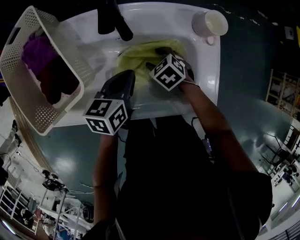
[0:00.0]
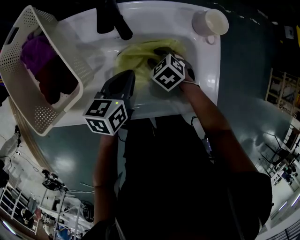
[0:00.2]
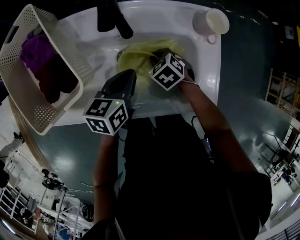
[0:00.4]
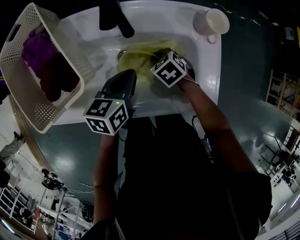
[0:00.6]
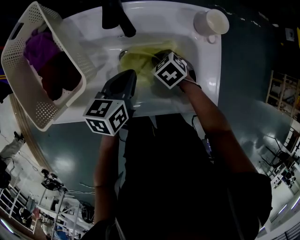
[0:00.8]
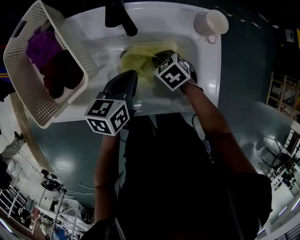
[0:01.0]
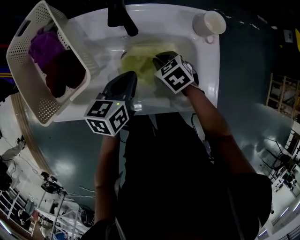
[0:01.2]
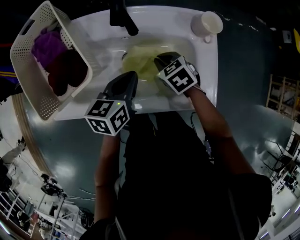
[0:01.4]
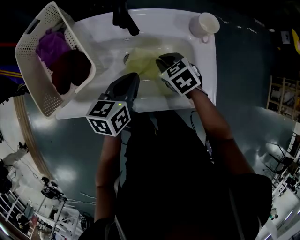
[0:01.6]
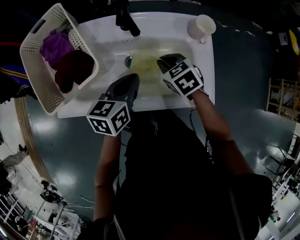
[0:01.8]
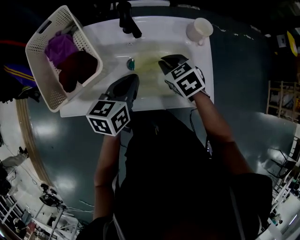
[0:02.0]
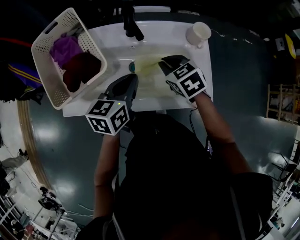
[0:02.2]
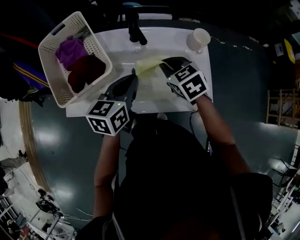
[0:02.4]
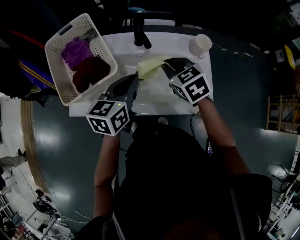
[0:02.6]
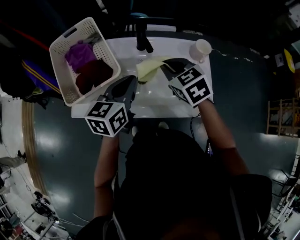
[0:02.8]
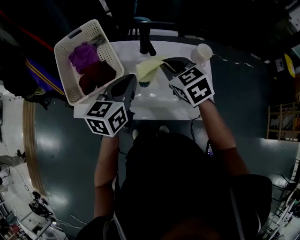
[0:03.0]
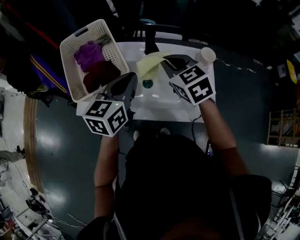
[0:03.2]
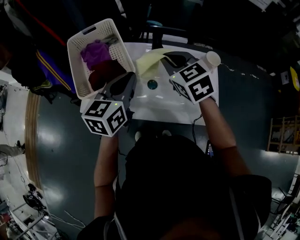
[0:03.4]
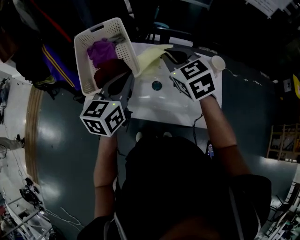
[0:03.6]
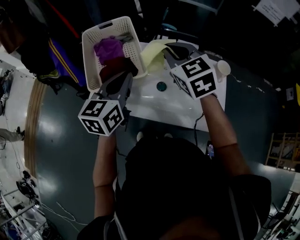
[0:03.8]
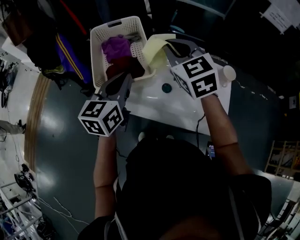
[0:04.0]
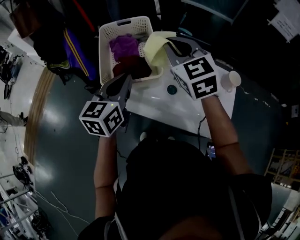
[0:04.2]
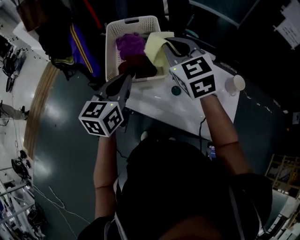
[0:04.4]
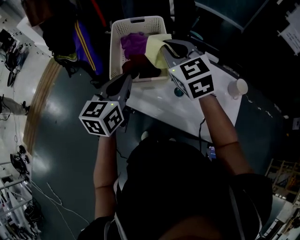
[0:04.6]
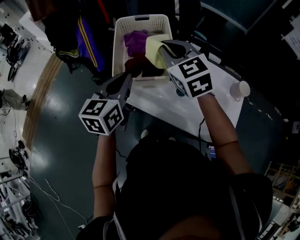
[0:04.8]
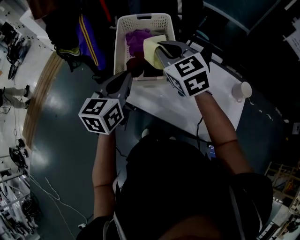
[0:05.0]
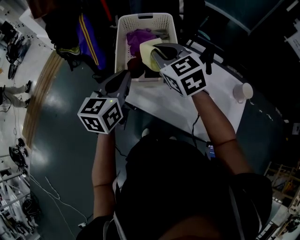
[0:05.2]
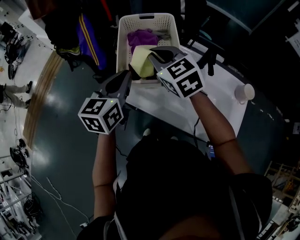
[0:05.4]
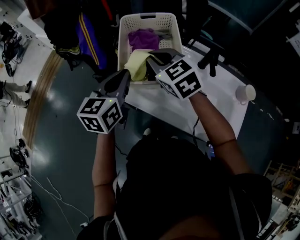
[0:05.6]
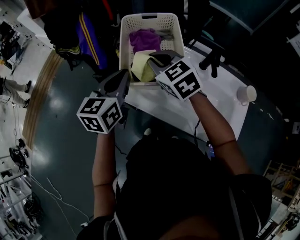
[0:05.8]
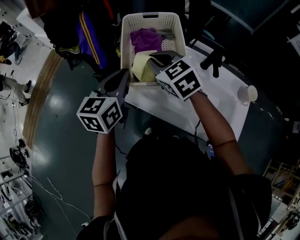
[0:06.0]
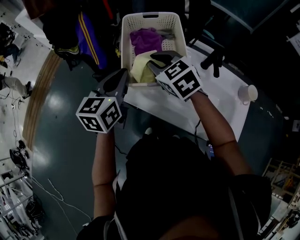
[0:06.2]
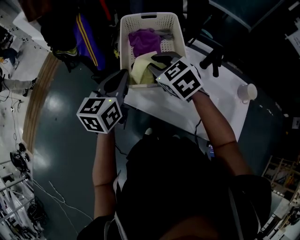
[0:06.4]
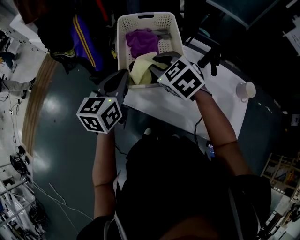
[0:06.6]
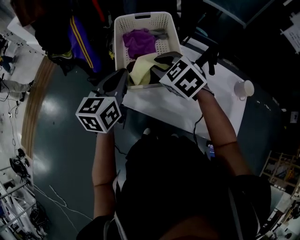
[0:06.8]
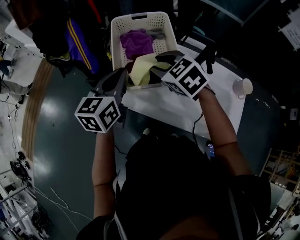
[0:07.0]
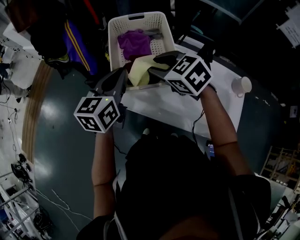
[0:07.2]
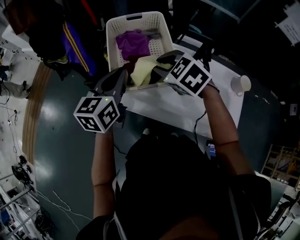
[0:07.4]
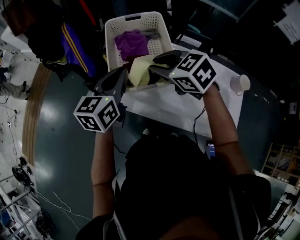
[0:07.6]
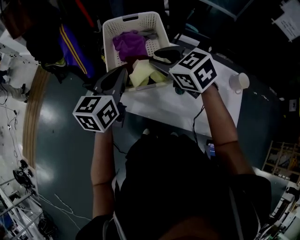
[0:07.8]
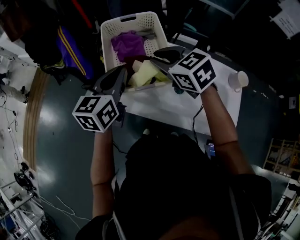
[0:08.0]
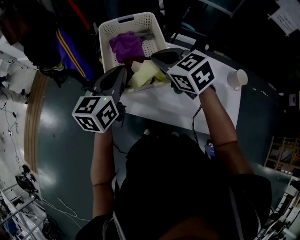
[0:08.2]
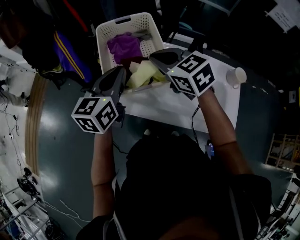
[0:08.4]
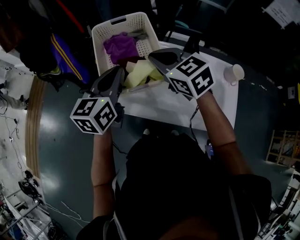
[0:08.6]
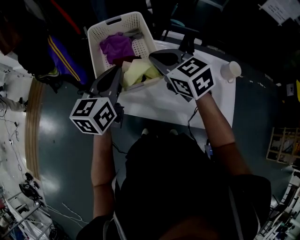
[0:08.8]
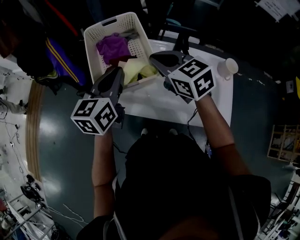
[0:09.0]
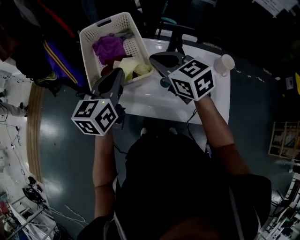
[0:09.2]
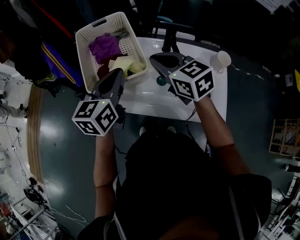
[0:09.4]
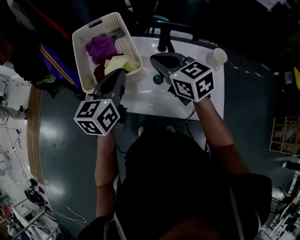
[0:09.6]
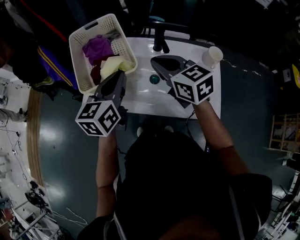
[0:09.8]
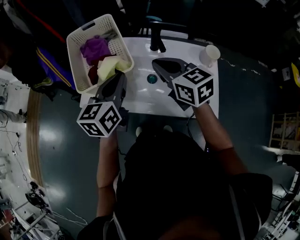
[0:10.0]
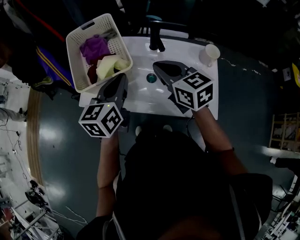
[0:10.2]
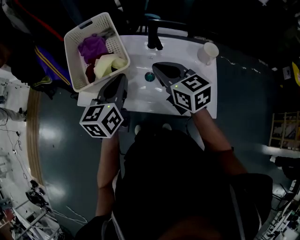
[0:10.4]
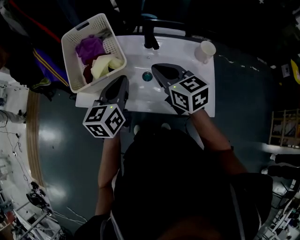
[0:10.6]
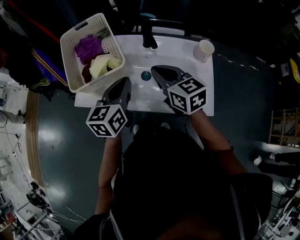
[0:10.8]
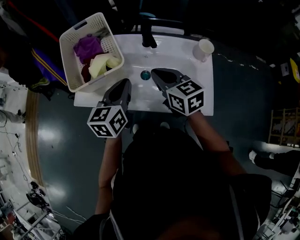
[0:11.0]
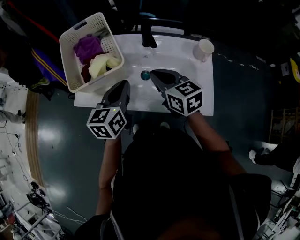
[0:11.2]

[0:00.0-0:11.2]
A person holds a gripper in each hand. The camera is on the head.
0:00.0 to 0:01.6: The left gripper changes place by about 5 cm, while the right gripper travels upward by approximately 10 cm, and closes up.
0:01.6 to 0:03.2: The left gripper is displaced upward and to the left by about 20 cm, and swivels some 20 degrees. The right gripper shifts about 25 cm upward, and changes its angle by roughly 20 degrees.
0:03.2 to 0:04.8: The two grippers go roughly 20 cm to the left. The right gripper changes its angle by about 20 degrees, while the left gripper swivels about 20 degrees.
0:04.8 to 0:06.4: The left gripper moves forward, approximately 5 cm. The right gripper travels downward and to the left by some 10 cm, and swivels roughly 20 degrees.
0:06.4 to 0:08.0: The left gripper changes place by some 5 cm. Meanwhile the right gripper shifts about 5 cm to the right.
0:08.0 to 0:09.6: The grippers both shift to the right and backward by about 15 cm. The right gripper swivels about 20 degrees.
0:09.6 to 0:11.2: The right gripper goes roughly 10 cm downward, backward and to the right; the left gripper heads downward and to the right, covering some 10 cm.

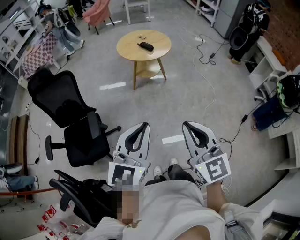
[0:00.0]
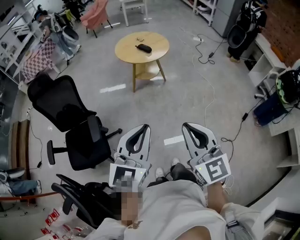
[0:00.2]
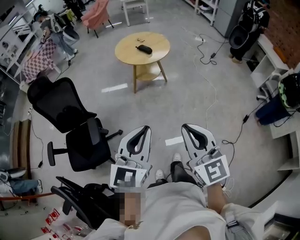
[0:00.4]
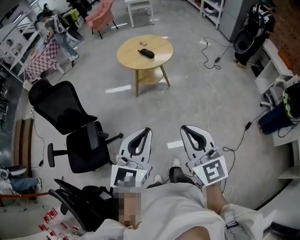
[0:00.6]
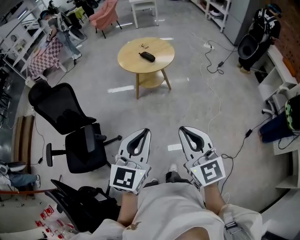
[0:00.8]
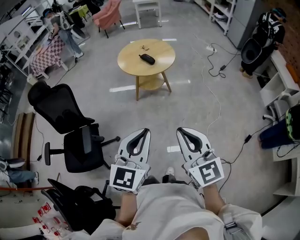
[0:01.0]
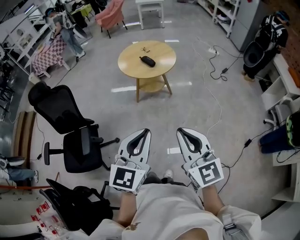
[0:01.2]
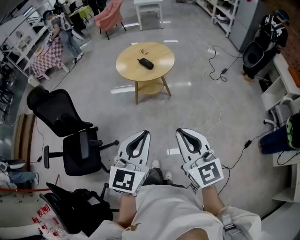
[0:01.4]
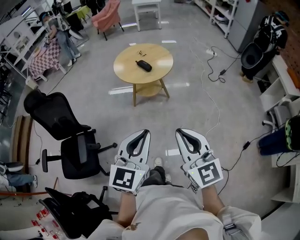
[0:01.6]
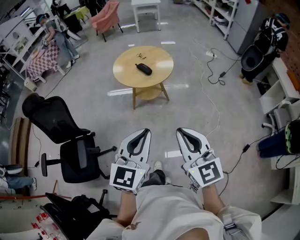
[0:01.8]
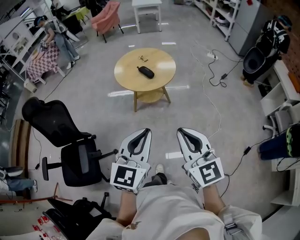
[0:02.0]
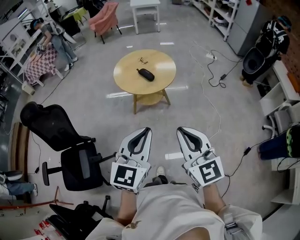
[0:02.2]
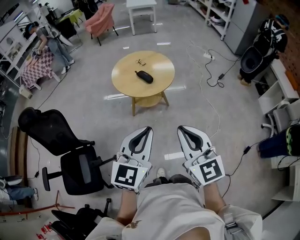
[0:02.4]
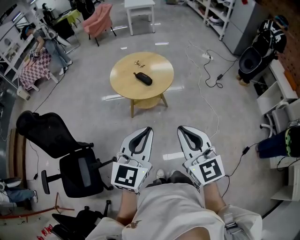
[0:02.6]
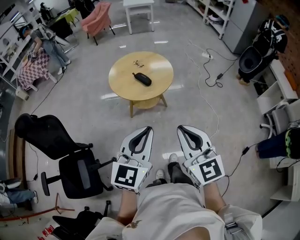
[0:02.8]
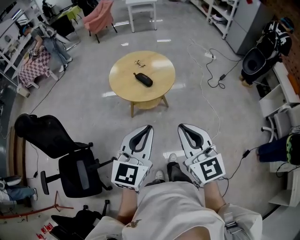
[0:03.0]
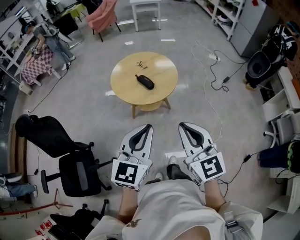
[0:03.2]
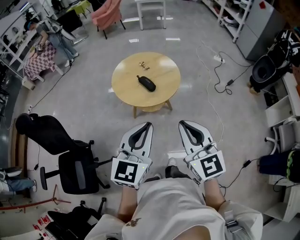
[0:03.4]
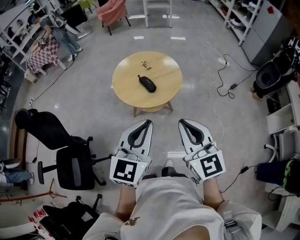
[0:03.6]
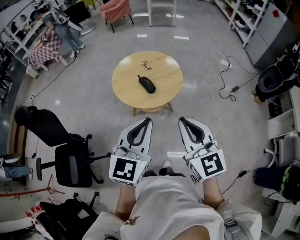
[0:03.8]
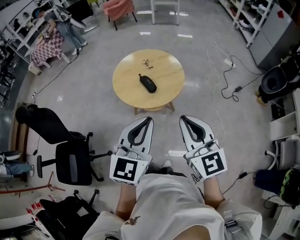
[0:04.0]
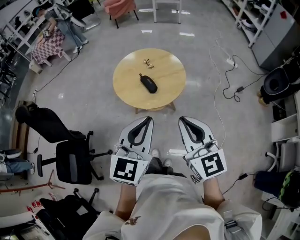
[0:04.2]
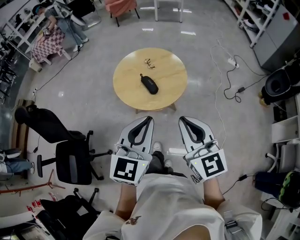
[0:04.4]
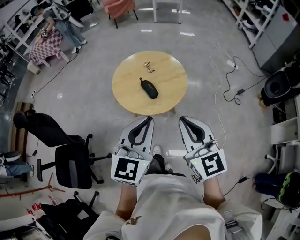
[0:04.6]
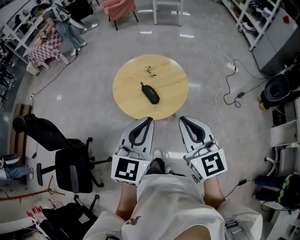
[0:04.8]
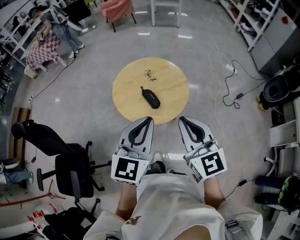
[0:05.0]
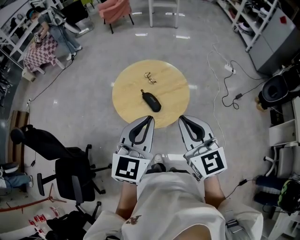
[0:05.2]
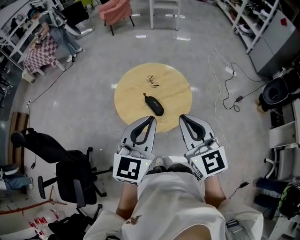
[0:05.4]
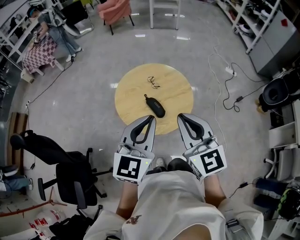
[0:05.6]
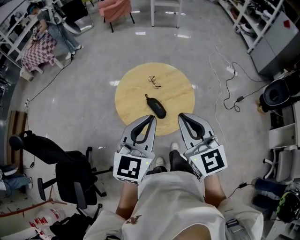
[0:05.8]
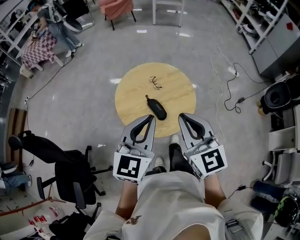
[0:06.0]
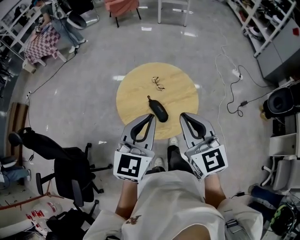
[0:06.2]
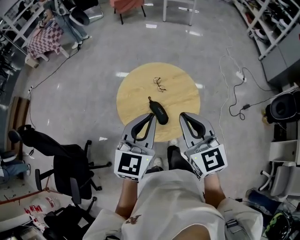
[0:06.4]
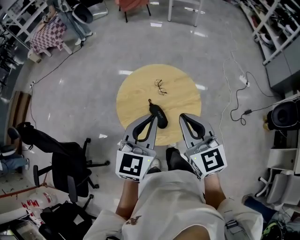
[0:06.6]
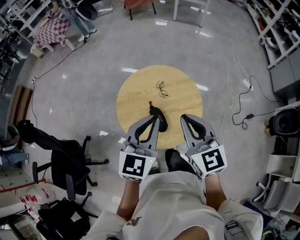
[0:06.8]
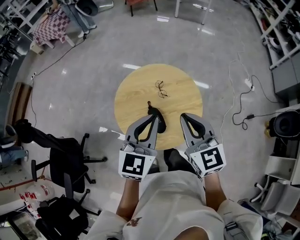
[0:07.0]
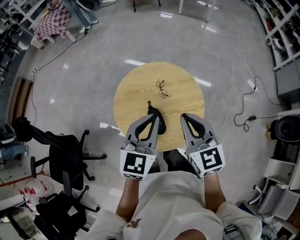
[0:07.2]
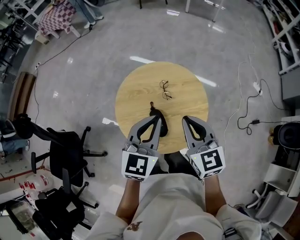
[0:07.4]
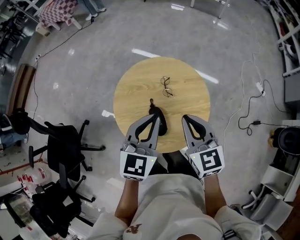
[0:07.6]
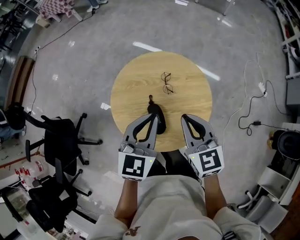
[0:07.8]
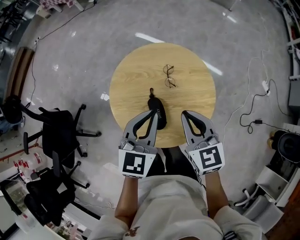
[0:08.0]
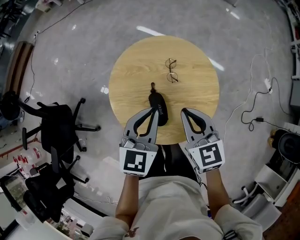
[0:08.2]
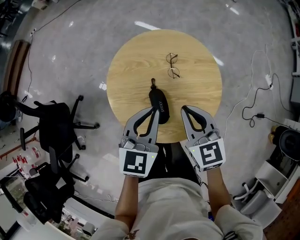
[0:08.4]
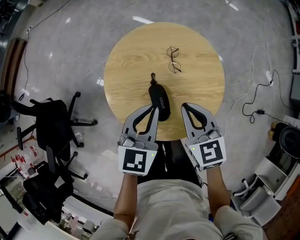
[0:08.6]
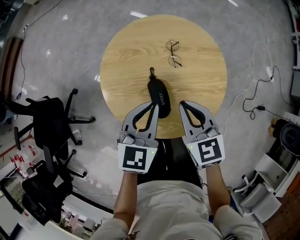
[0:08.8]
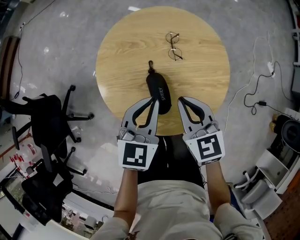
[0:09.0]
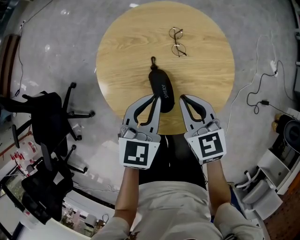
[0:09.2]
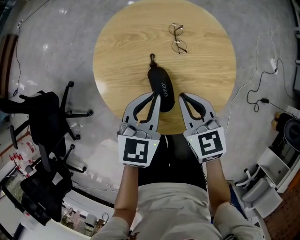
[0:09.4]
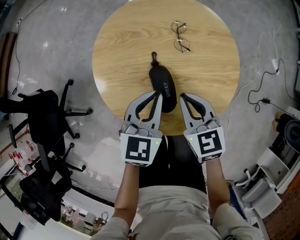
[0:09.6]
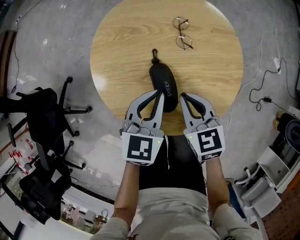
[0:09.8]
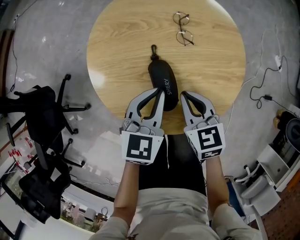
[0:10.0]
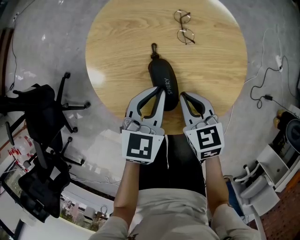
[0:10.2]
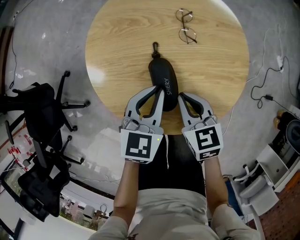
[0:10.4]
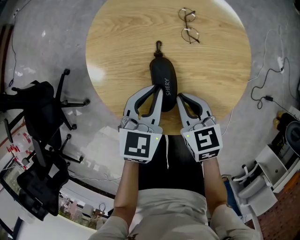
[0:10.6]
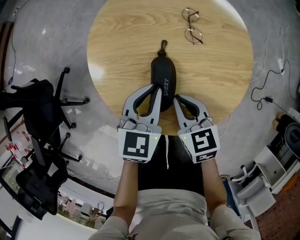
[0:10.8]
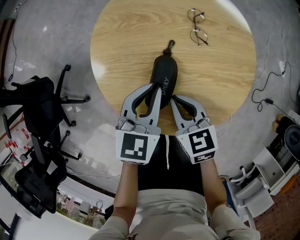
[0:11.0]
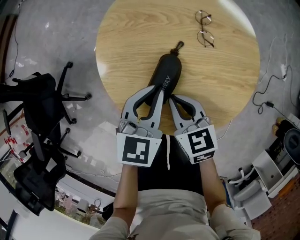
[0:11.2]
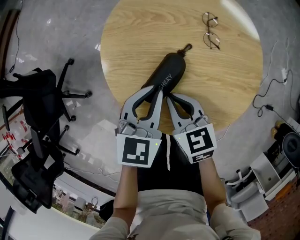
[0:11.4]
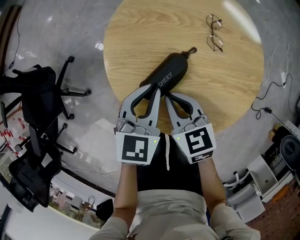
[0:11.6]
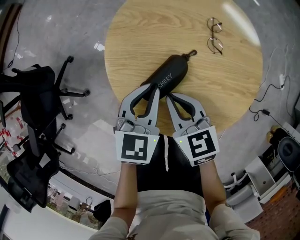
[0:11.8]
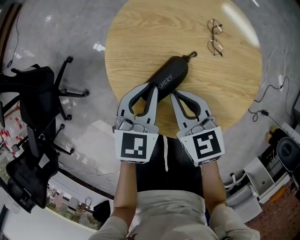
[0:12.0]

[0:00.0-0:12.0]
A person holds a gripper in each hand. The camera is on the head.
0:00.0 to 0:01.6: Both grippers travel together forward and to the right, some 25 cm.
0:01.6 to 0:03.0: The grippers both shift forward by about 20 cm.
0:03.0 to 0:04.4: The right gripper goes some 20 cm forward, while the left gripper travels forward and to the right by about 20 cm.
0:04.4 to 0:06.0: Both grippers travel together forward, roughly 20 cm.
0:06.0 to 0:07.6: The grippers both shift forward and downward by approximately 20 cm.
0:07.6 to 0:09.0: Both grippers travel together downward, about 20 cm.
0:09.0 to 0:10.4: Both grippers move downward, about 10 cm.
0:10.4 to 0:12.0: Both grippers move to the left, approximately 10 cm.

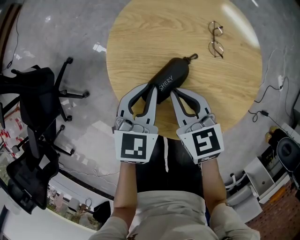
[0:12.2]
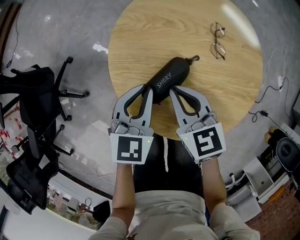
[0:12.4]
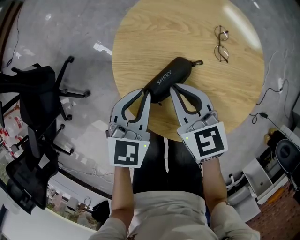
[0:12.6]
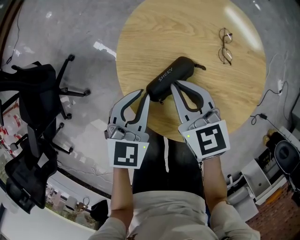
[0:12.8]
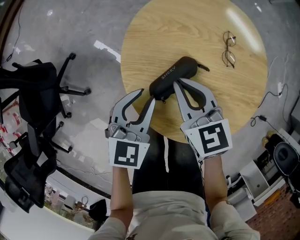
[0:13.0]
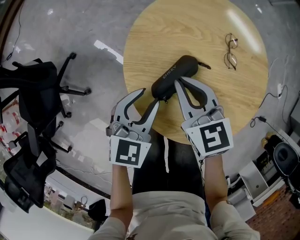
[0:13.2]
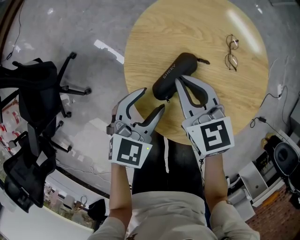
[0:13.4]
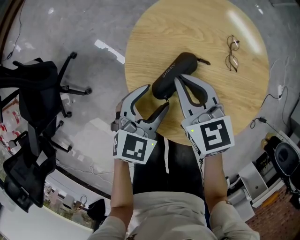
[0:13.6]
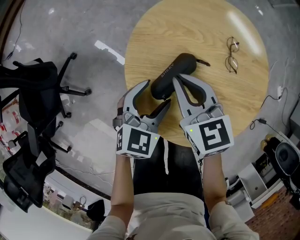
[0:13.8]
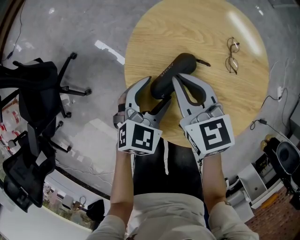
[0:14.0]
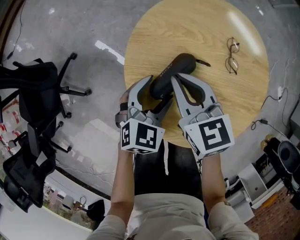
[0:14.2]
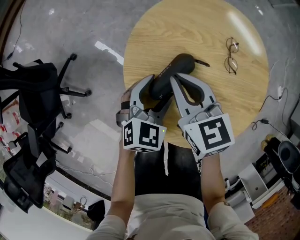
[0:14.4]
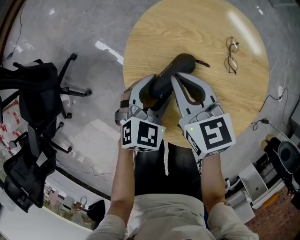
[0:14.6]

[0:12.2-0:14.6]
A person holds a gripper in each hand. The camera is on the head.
0:12.2 to 0:13.4: The right gripper is displaced forward by roughly 5 cm. The left gripper opens its fingers.
0:13.4 to 0:14.6: The left gripper shifts by about 5 cm.
